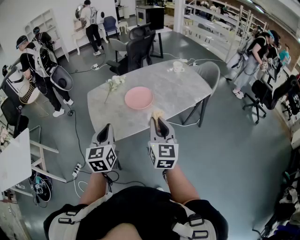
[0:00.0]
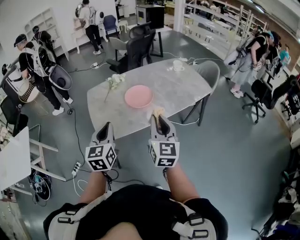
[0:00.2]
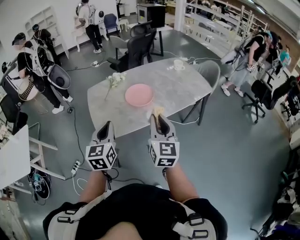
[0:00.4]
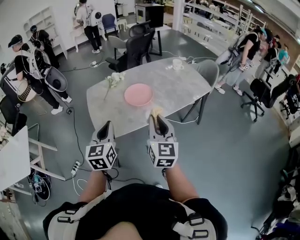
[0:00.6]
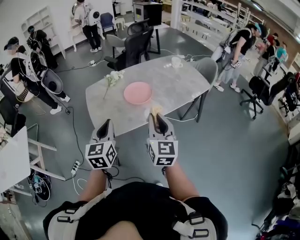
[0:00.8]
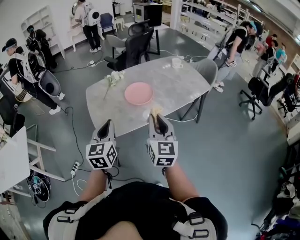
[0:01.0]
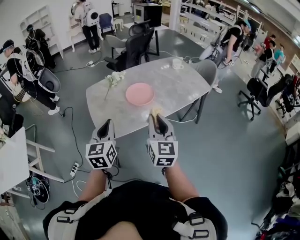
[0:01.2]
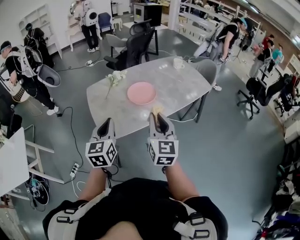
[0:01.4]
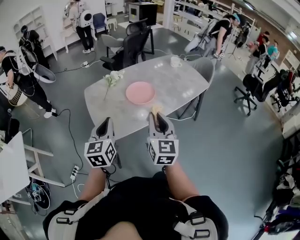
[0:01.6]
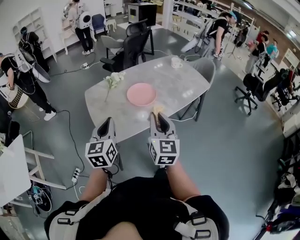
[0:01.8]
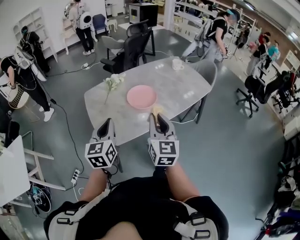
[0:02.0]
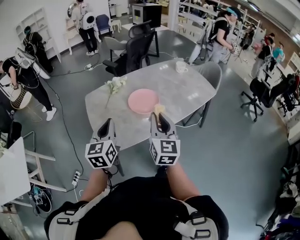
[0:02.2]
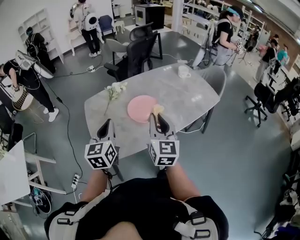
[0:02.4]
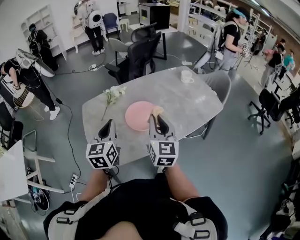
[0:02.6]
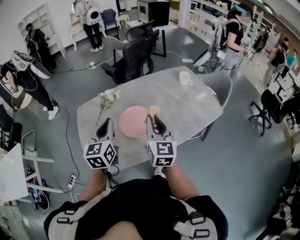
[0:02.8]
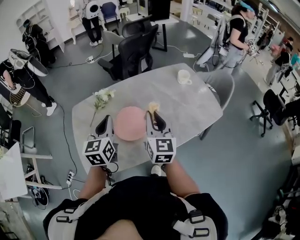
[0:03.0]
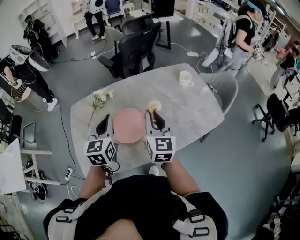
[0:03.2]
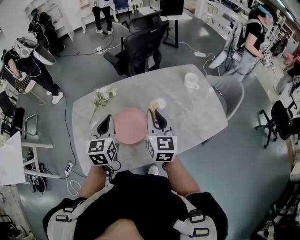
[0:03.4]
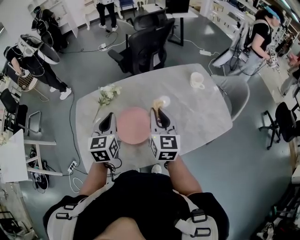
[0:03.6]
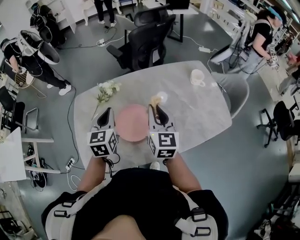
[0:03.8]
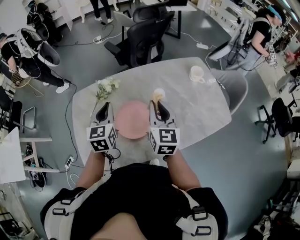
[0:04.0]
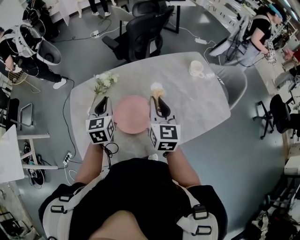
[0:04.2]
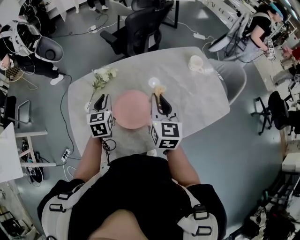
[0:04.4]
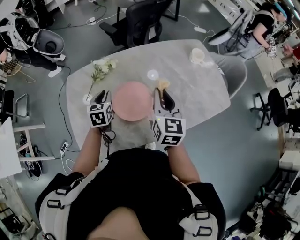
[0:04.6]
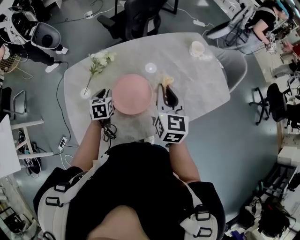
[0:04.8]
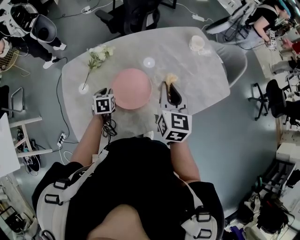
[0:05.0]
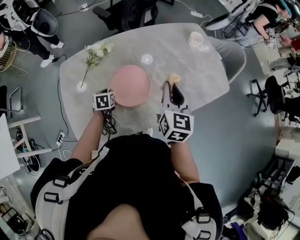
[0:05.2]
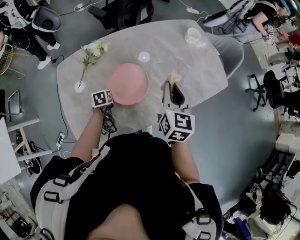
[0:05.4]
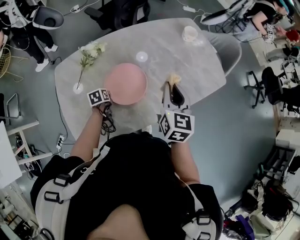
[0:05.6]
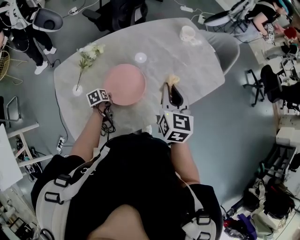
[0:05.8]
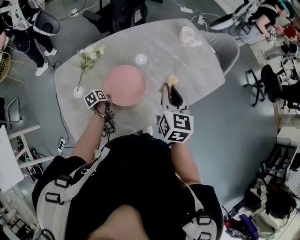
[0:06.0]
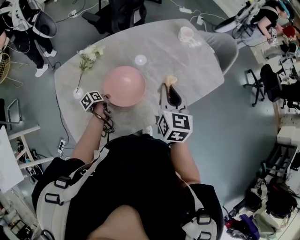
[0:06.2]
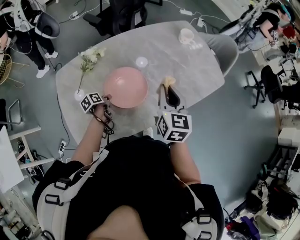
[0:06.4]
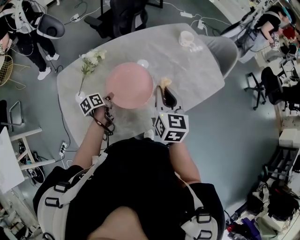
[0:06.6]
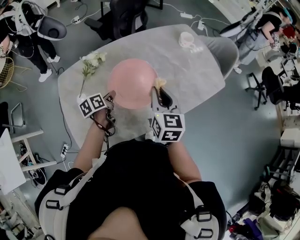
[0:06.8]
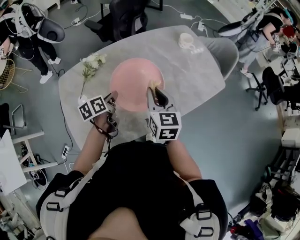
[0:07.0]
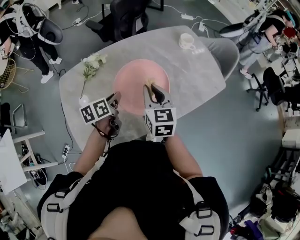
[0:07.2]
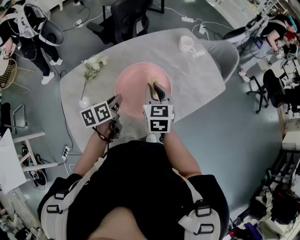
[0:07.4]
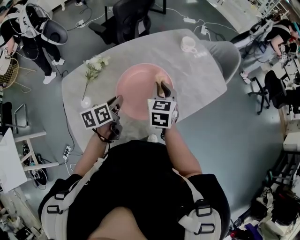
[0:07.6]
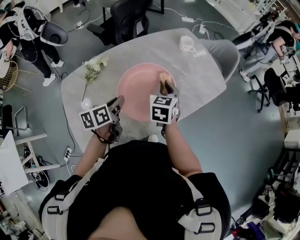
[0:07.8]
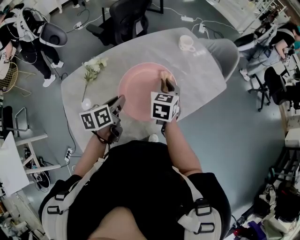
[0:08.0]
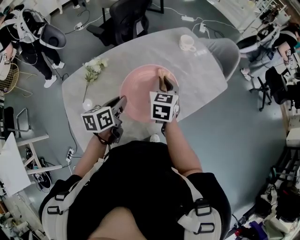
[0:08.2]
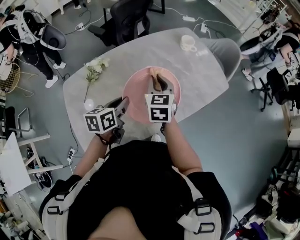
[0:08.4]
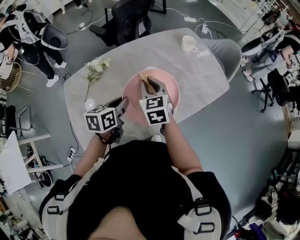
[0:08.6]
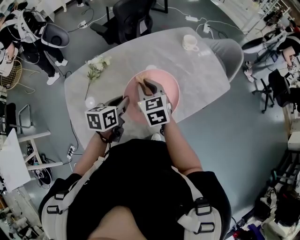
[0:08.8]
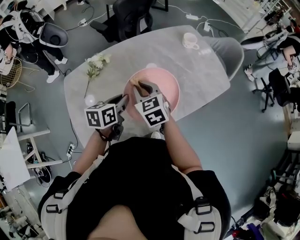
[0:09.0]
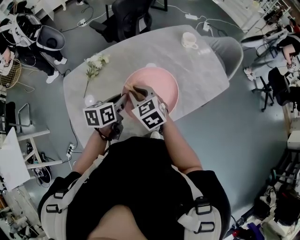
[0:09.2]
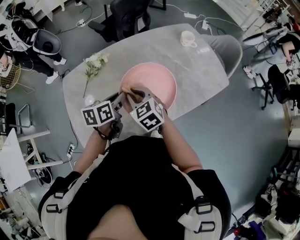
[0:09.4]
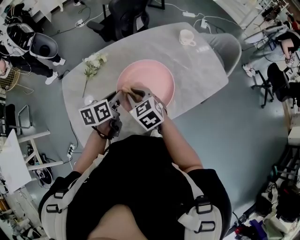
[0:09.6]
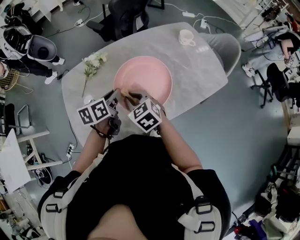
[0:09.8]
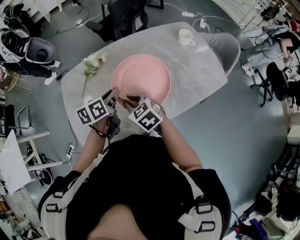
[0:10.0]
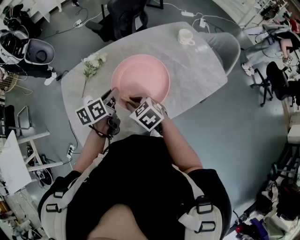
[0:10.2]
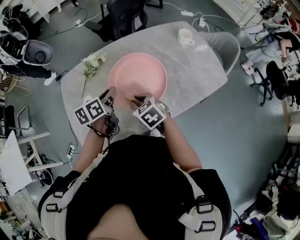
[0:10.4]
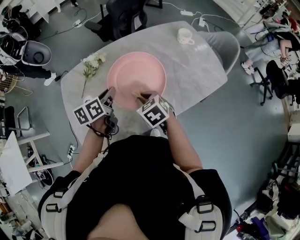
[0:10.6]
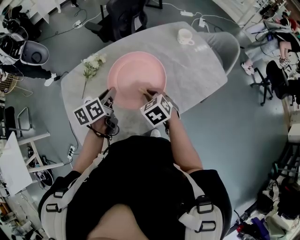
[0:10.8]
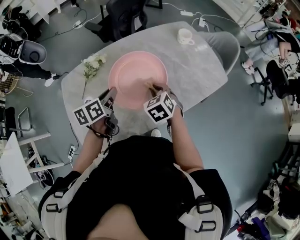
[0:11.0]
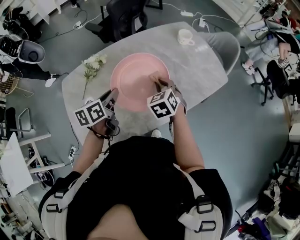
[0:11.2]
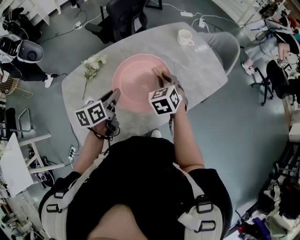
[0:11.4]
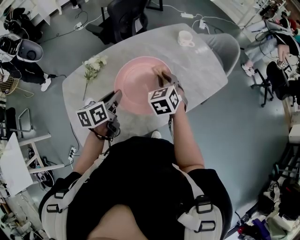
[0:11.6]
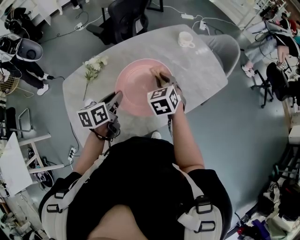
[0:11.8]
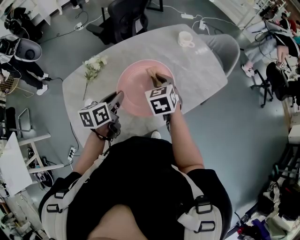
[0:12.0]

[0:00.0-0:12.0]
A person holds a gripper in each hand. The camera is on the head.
0:00.0 to 0:01.6: Both grippers travel together to the left, roughly 10 cm.
0:01.6 to 0:03.0: The left gripper goes approximately 35 cm forward and to the right; the right gripper moves forward, approximately 35 cm.
0:03.0 to 0:04.4: The right gripper goes roughly 10 cm forward; the left gripper shifts about 15 cm downward and forward.
0:04.4 to 0:06.0: The left gripper moves downward, approximately 25 cm, and swivels about 60 degrees; the right gripper travels backward and to the right by roughly 10 cm.
0:06.0 to 0:07.6: The right gripper shifts by some 5 cm, while the left gripper is displaced upward and to the right by about 25 cm, and swivels roughly 30 degrees.
0:07.6 to 0:09.0: The right gripper goes roughly 10 cm to the left, and swivels approximately 30 degrees.
0:09.0 to 0:10.4: The right gripper travels backward and downward by approximately 10 cm, and rotates approximately 20 degrees.
0:10.4 to 0:12.0: The right gripper shifts by approximately 15 cm, and swivels approximately 30 degrees.

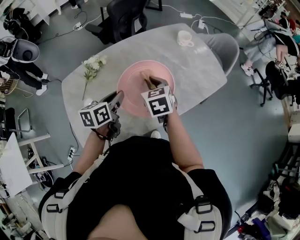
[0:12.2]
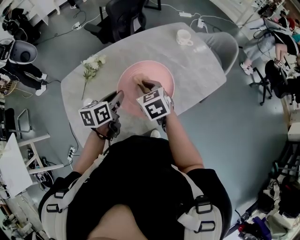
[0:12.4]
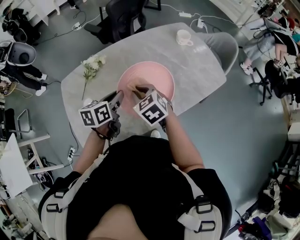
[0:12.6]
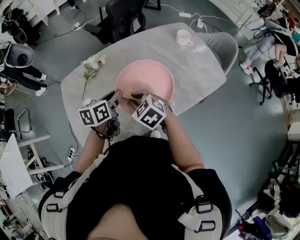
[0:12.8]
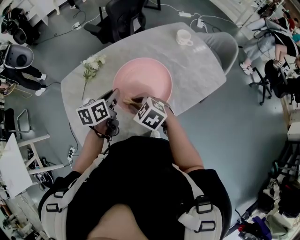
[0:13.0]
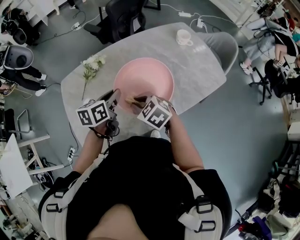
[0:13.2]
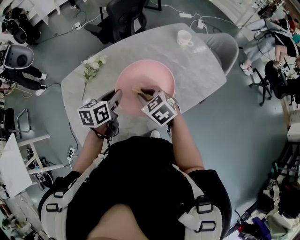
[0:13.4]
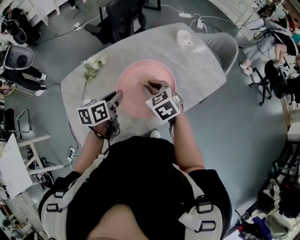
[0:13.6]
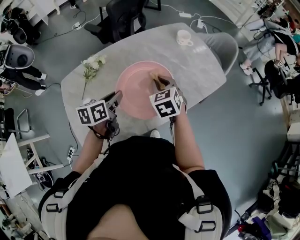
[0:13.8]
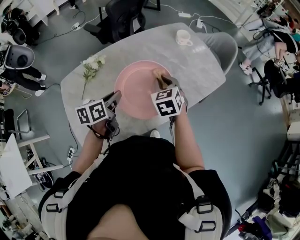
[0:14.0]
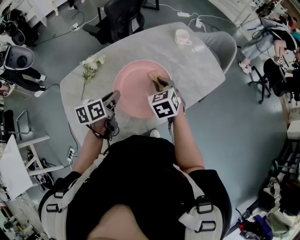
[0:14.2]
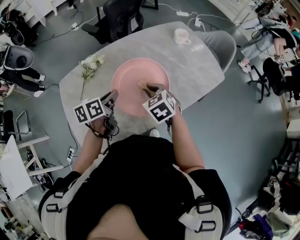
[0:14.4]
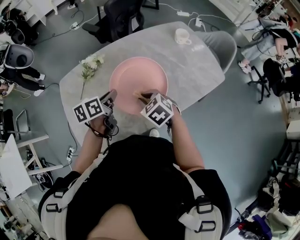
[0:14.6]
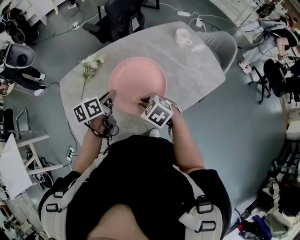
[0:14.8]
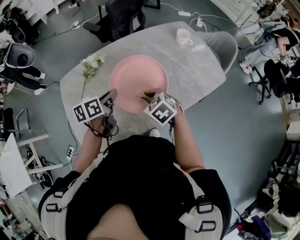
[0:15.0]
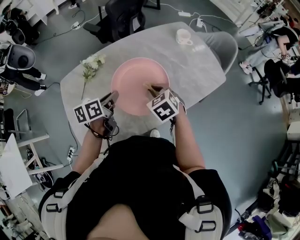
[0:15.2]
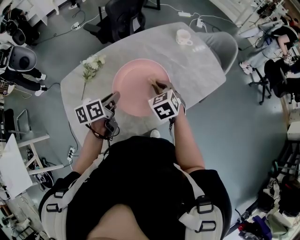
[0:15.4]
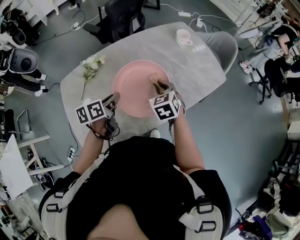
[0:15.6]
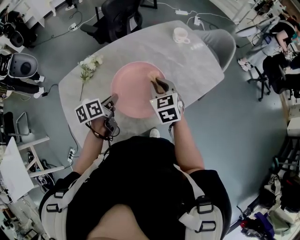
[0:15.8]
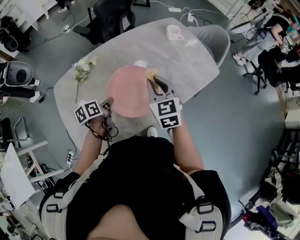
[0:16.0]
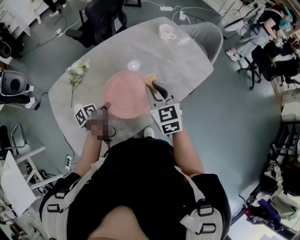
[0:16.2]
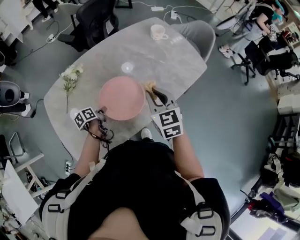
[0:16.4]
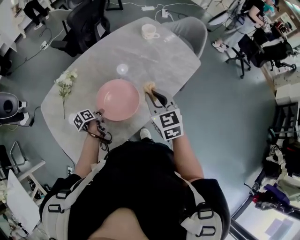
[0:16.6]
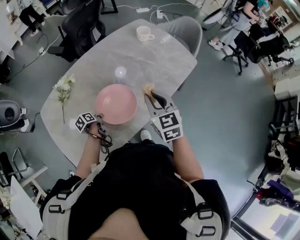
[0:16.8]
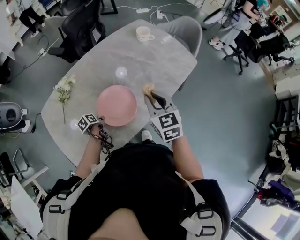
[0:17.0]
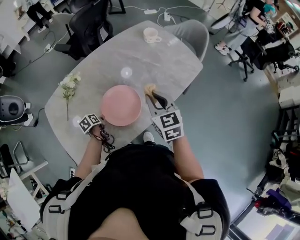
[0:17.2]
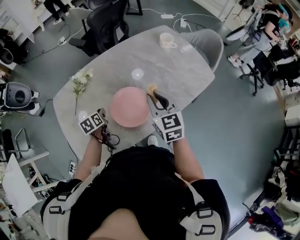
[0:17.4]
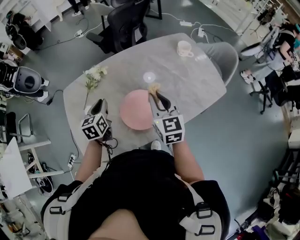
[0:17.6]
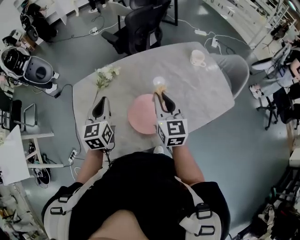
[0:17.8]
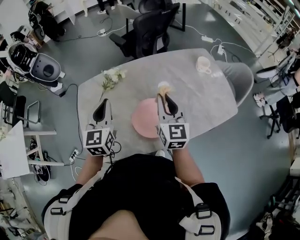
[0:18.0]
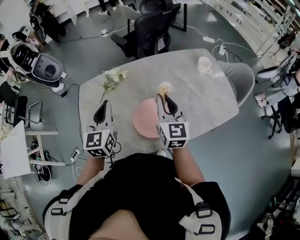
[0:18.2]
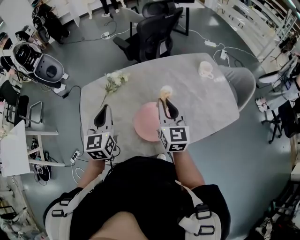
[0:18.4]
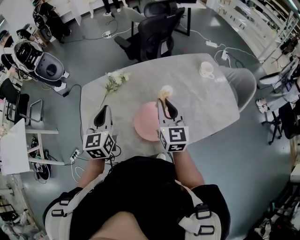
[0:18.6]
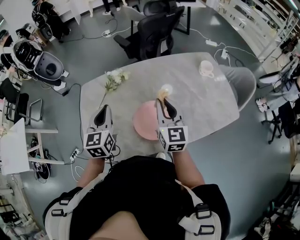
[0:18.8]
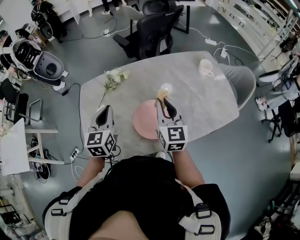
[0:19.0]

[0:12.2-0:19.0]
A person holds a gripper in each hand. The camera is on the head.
0:12.2 to 0:13.6: The right gripper goes backward and returns, some 10 cm each way.
0:13.6 to 0:15.0: The right gripper is displaced downward by some 5 cm.
0:15.0 to 0:16.2: The right gripper moves upward and to the right, some 10 cm, and rotates about 40 degrees, while the left gripper is displaced downward by some 15 cm, and turns by about 20 degrees.
0:16.2 to 0:17.6: The left gripper shifts about 10 cm upward, and swivels roughly 50 degrees.
0:17.6 to 0:19.0: The right gripper shifts by roughly 5 cm, while the left gripper shifts roughly 10 cm upward.

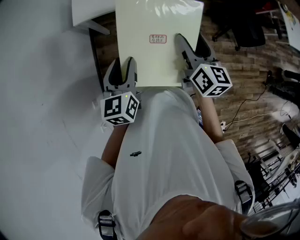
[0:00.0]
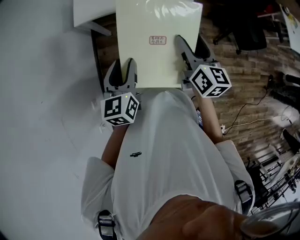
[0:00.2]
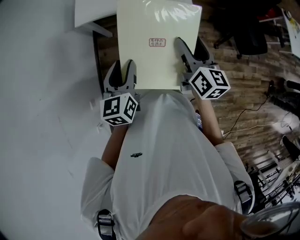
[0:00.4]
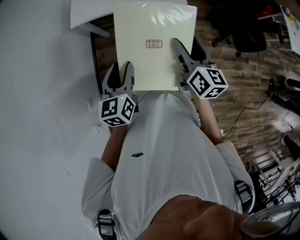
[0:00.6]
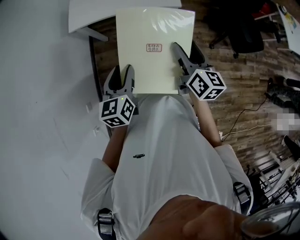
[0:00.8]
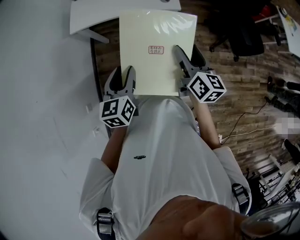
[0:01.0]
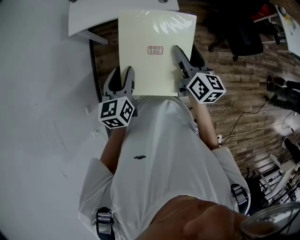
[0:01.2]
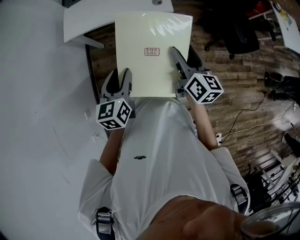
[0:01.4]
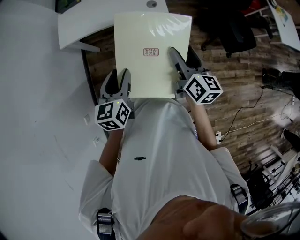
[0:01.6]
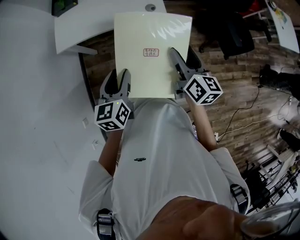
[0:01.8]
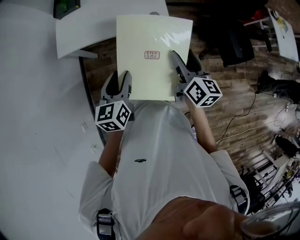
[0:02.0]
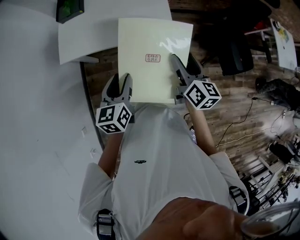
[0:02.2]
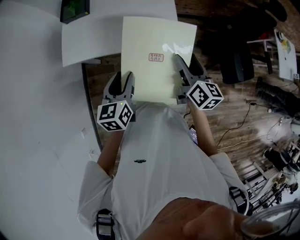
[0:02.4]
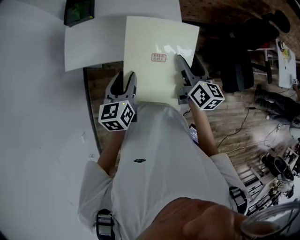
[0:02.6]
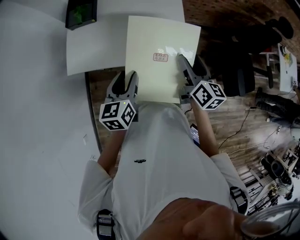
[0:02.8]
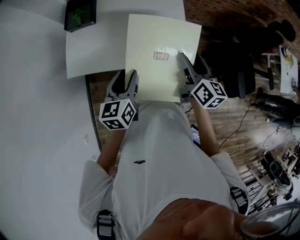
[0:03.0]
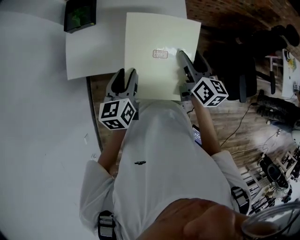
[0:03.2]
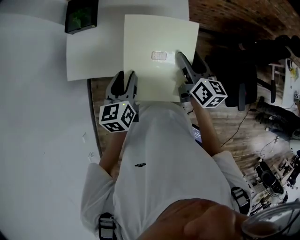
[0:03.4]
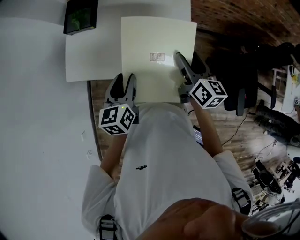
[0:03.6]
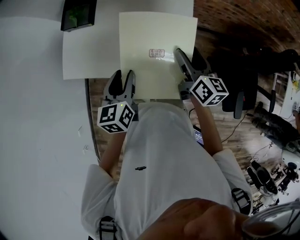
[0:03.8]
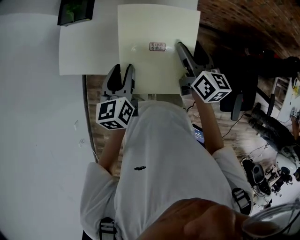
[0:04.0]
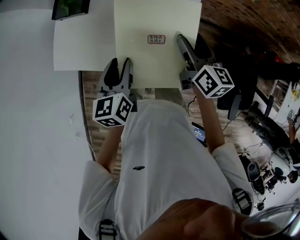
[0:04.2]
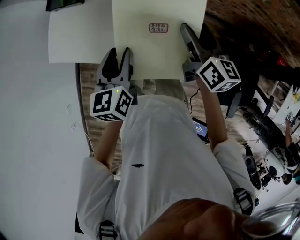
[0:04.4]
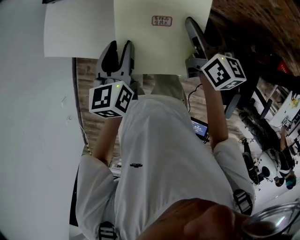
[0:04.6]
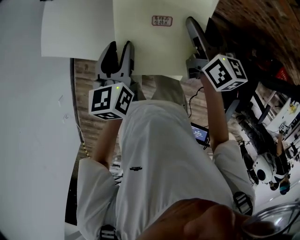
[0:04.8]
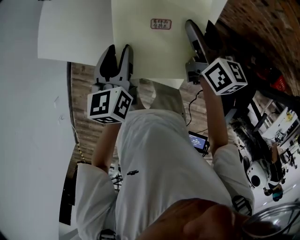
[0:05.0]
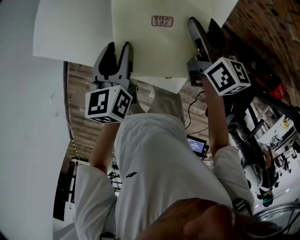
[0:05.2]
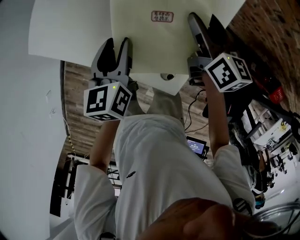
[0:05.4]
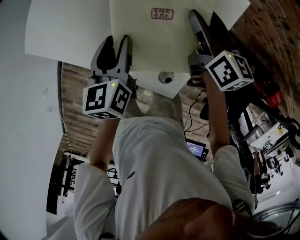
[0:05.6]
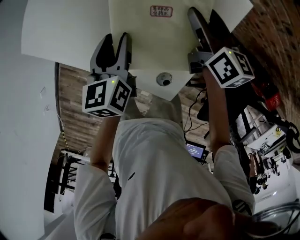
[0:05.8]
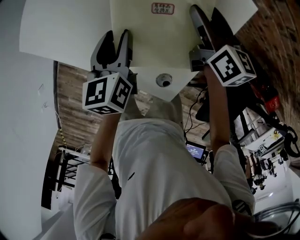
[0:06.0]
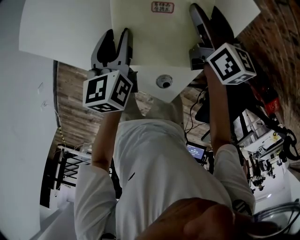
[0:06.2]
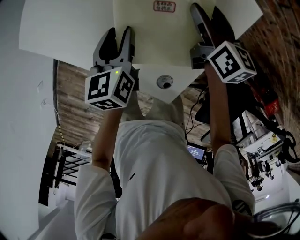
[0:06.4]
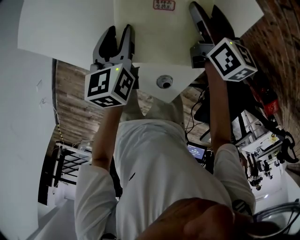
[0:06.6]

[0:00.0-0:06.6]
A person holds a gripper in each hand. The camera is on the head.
0:00.0 to 0:01.6: Both grippers travel together to the right, some 15 cm.
0:01.6 to 0:03.2: The pair of grippers is taken forward, approximately 40 cm.
0:03.2 to 0:05.0: Both grippers move forward and downward, about 30 cm. The right gripper rotates roughly 20 degrees. Meanwhile the left gripper turns by about 30 degrees.
0:05.0 to 0:06.6: The grippers both shift downward and forward by some 15 cm.
